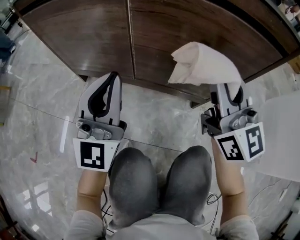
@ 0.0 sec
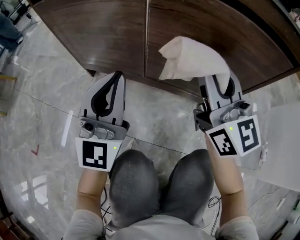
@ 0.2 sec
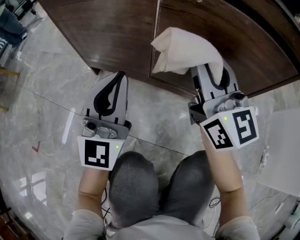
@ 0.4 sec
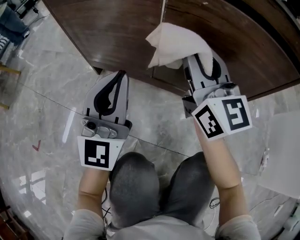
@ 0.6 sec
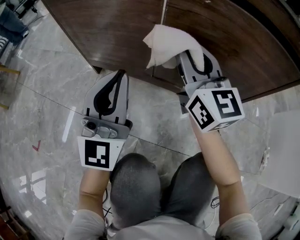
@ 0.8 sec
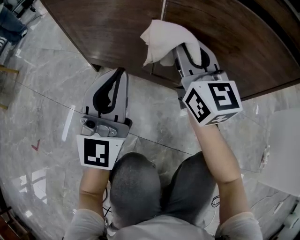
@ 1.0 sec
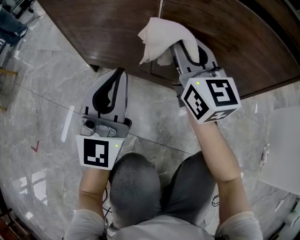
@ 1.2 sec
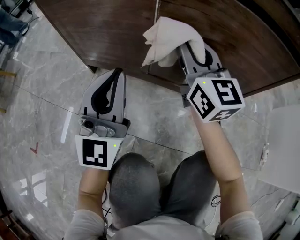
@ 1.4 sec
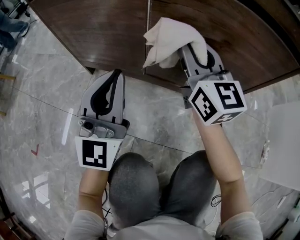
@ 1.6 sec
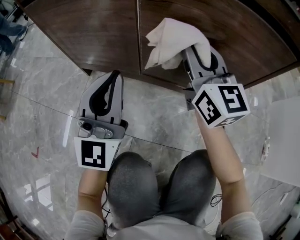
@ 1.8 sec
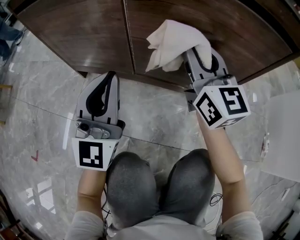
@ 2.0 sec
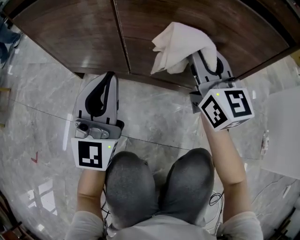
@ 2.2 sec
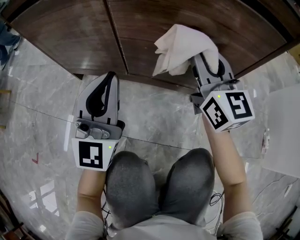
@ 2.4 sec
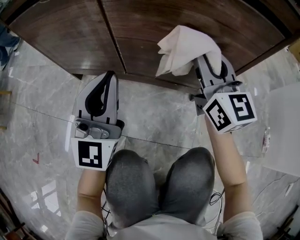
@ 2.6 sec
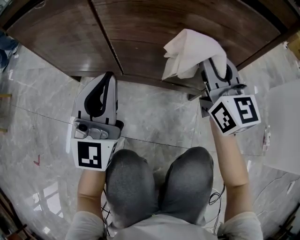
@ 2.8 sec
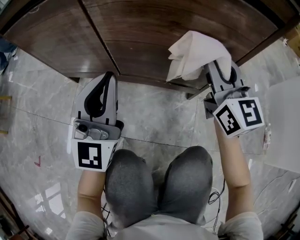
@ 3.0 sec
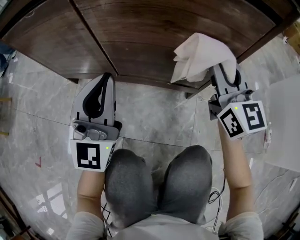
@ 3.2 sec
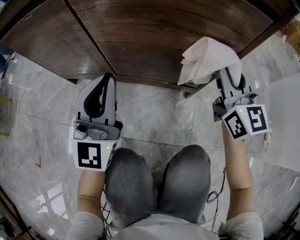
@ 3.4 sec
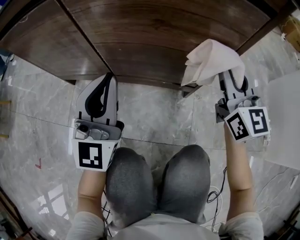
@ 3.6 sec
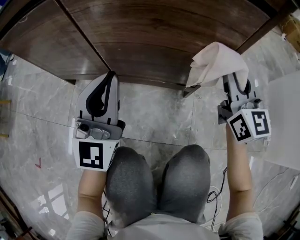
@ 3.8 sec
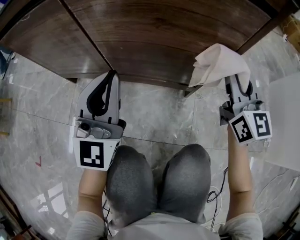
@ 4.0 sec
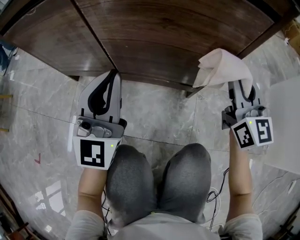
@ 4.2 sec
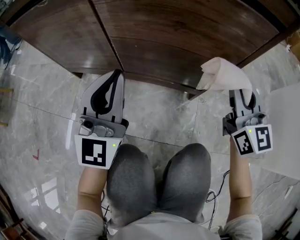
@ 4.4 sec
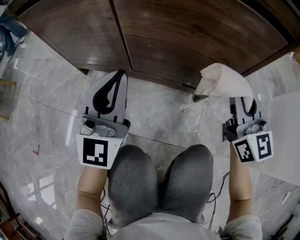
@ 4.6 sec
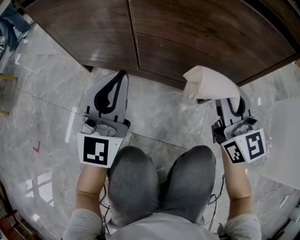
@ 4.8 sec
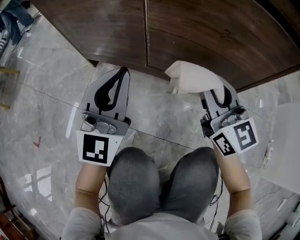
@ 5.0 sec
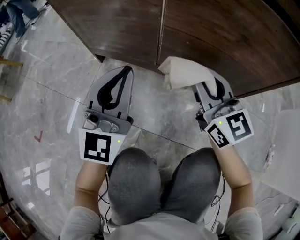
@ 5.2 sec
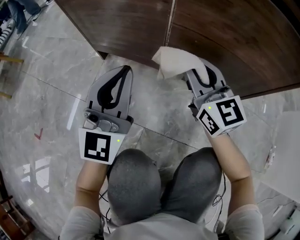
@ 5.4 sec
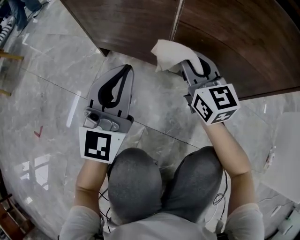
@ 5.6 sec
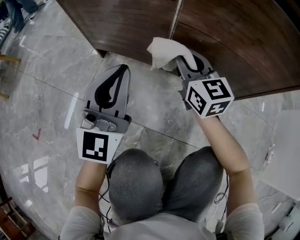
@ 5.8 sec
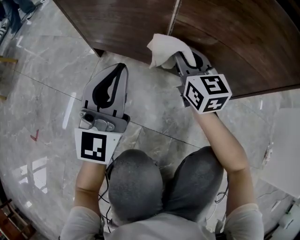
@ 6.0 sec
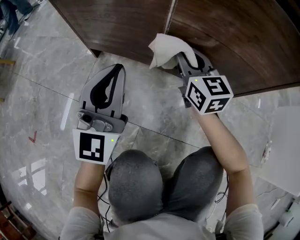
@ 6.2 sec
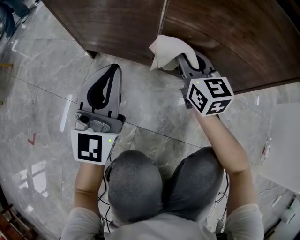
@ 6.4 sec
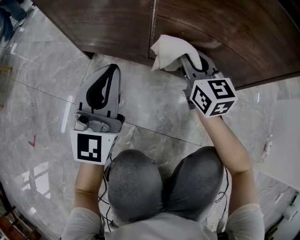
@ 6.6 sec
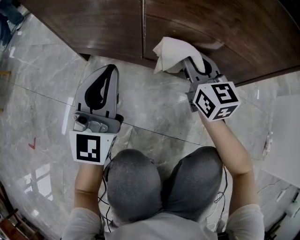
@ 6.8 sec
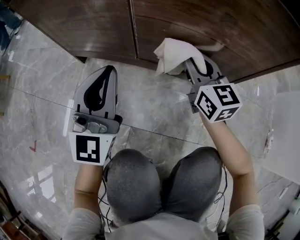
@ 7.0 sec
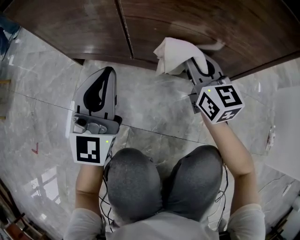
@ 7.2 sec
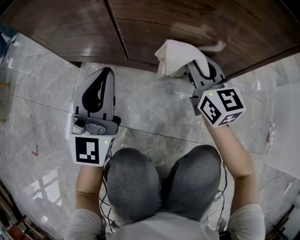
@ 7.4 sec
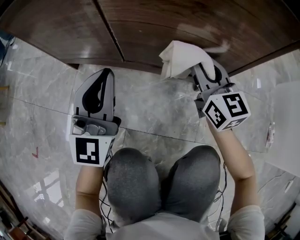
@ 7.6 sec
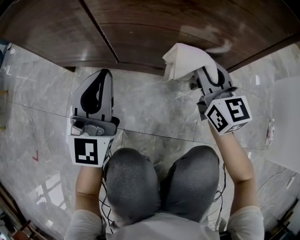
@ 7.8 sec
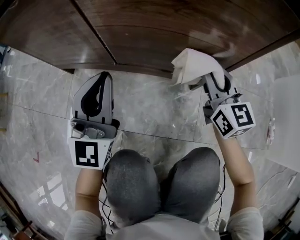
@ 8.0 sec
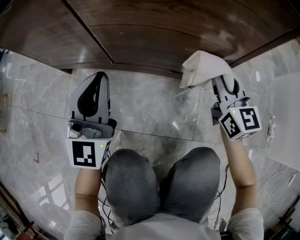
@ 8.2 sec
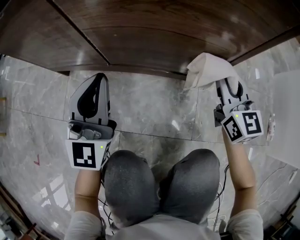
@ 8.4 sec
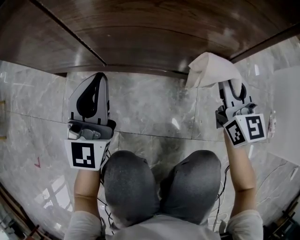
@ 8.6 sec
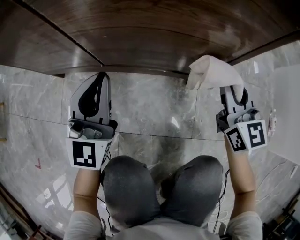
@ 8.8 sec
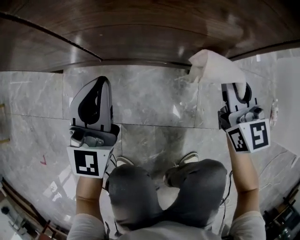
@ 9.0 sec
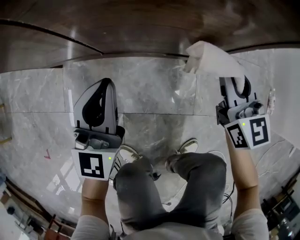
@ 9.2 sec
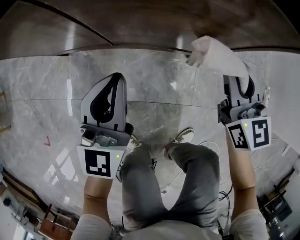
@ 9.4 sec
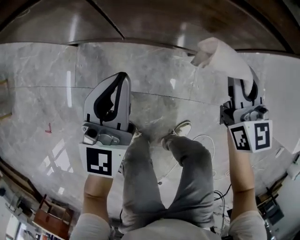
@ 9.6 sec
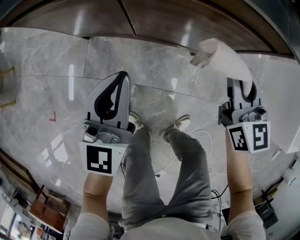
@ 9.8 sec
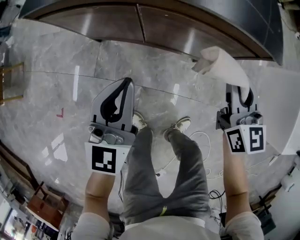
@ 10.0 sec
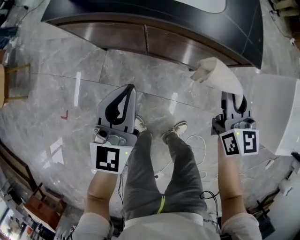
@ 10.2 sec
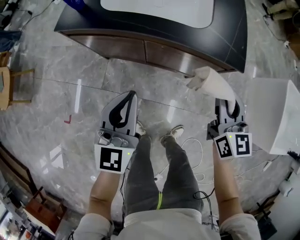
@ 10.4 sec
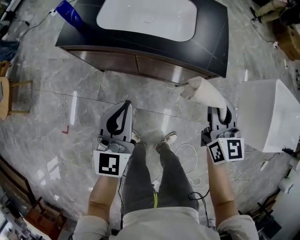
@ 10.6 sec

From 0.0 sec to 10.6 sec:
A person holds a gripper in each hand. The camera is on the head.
From 0.0 sec to 1.6 sec: The right gripper goes approximately 15 cm forward, to the left and downward.
From 1.6 sec to 3.0 sec: The left gripper travels to the right by about 10 cm; the right gripper shifts roughly 20 cm to the right.
From 3.0 sec to 4.6 sec: The right gripper heads backward, covering some 5 cm, and goes to the right and returns, some 10 cm each way.
From 4.6 sec to 6.0 sec: The right gripper moves to the left, forward and downward, approximately 30 cm. Meanwhile the left gripper is displaced to the left and downward by roughly 15 cm.
From 6.0 sec to 7.6 sec: The left gripper goes about 10 cm to the right. Meanwhile the right gripper shifts about 20 cm to the right.
From 7.6 sec to 9.0 sec: The right gripper travels to the right by roughly 15 cm. Meanwhile the left gripper heads to the right, covering approximately 5 cm.
From 9.0 sec to 10.6 sec: The grippers both shift upward by some 60 cm.

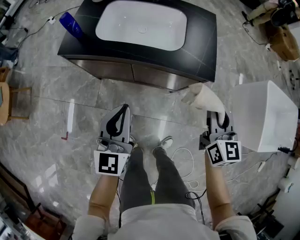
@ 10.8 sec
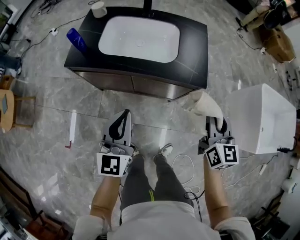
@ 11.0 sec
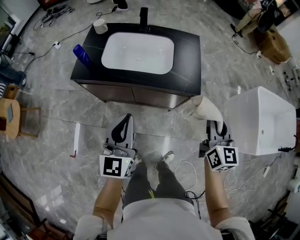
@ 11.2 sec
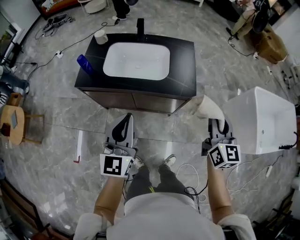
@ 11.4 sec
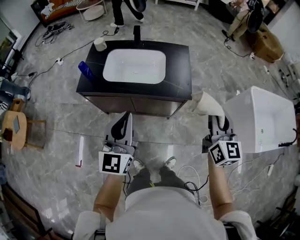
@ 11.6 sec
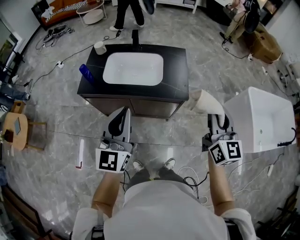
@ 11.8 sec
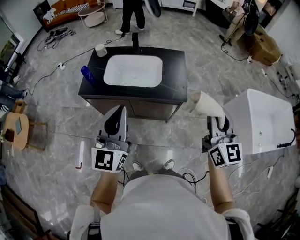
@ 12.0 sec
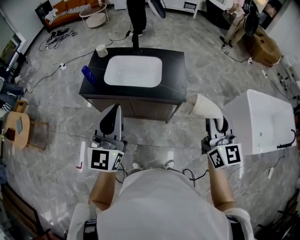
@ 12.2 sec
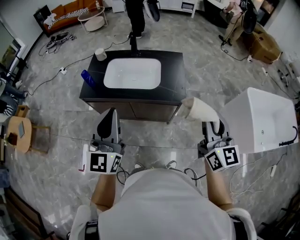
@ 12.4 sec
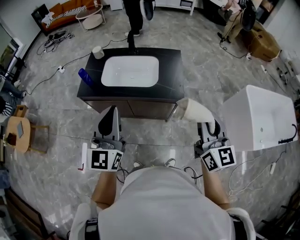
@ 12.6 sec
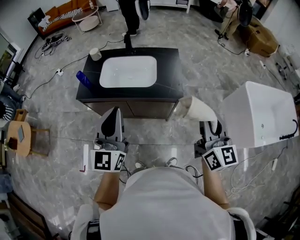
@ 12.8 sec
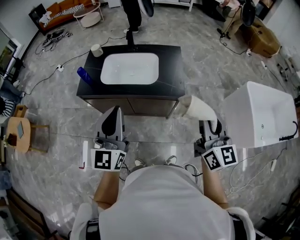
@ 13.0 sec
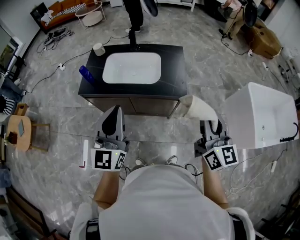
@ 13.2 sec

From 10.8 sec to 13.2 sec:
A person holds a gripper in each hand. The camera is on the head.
From 10.8 sec to 12.0 sec: Both grippers travel together upward, roughly 30 cm.
From 12.0 sec to 13.2 sec: There are only small adjustments of the grippers.

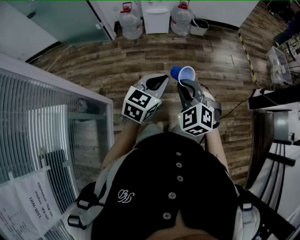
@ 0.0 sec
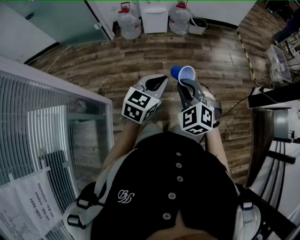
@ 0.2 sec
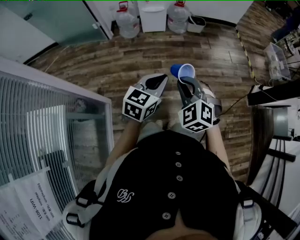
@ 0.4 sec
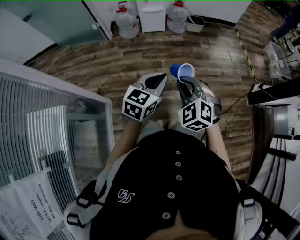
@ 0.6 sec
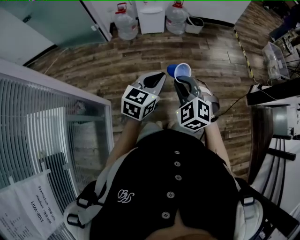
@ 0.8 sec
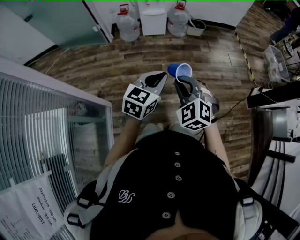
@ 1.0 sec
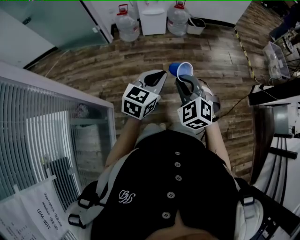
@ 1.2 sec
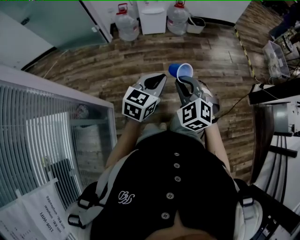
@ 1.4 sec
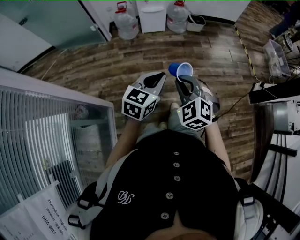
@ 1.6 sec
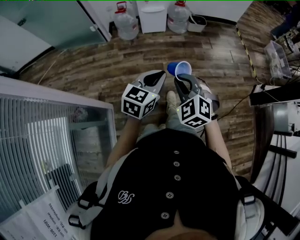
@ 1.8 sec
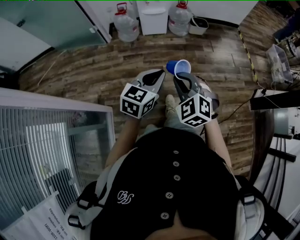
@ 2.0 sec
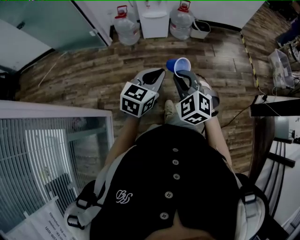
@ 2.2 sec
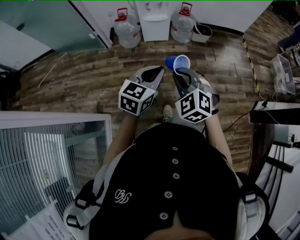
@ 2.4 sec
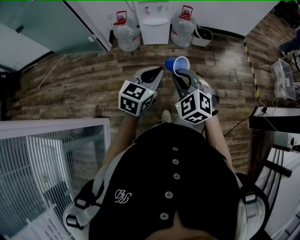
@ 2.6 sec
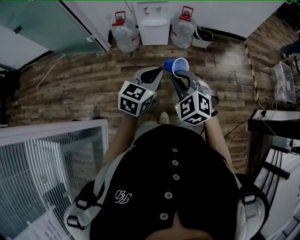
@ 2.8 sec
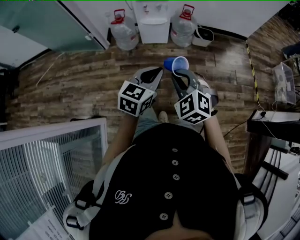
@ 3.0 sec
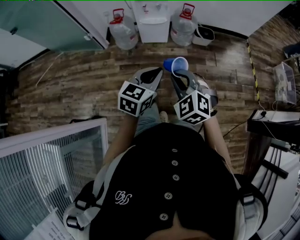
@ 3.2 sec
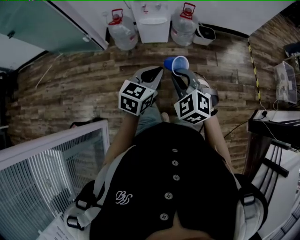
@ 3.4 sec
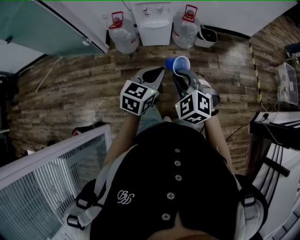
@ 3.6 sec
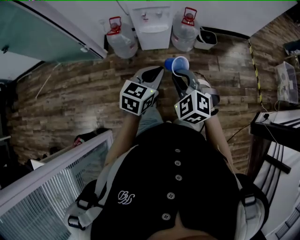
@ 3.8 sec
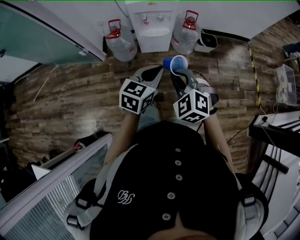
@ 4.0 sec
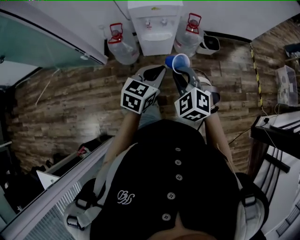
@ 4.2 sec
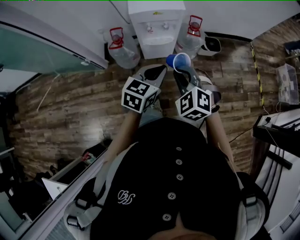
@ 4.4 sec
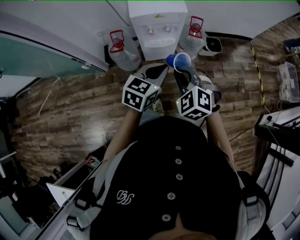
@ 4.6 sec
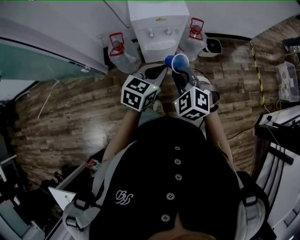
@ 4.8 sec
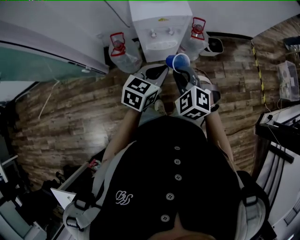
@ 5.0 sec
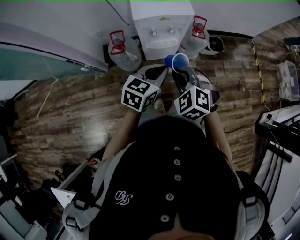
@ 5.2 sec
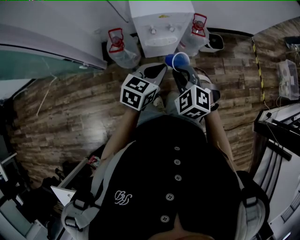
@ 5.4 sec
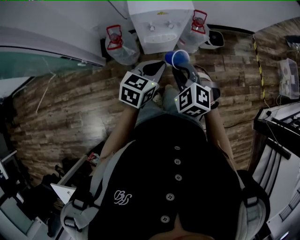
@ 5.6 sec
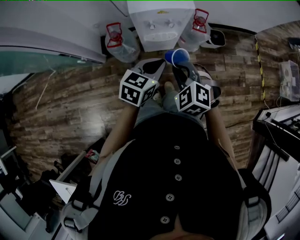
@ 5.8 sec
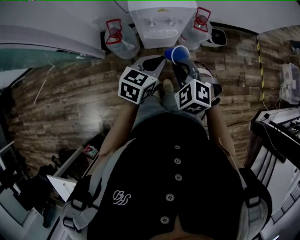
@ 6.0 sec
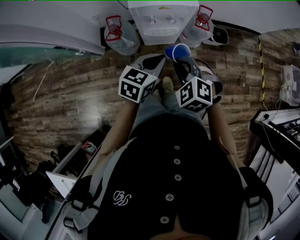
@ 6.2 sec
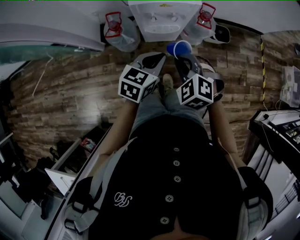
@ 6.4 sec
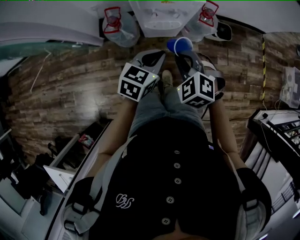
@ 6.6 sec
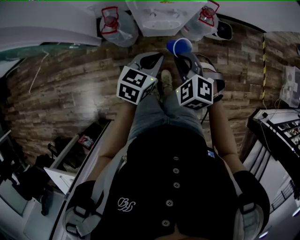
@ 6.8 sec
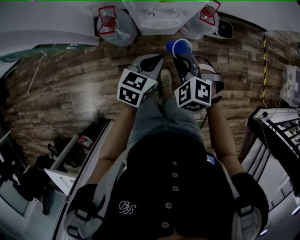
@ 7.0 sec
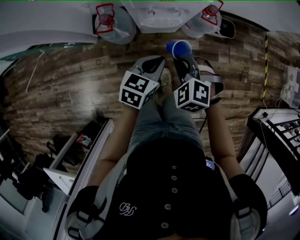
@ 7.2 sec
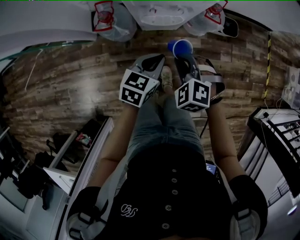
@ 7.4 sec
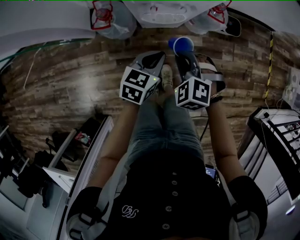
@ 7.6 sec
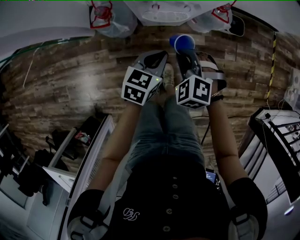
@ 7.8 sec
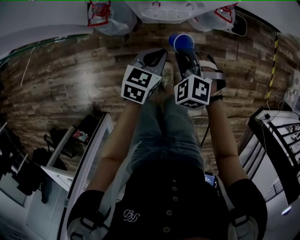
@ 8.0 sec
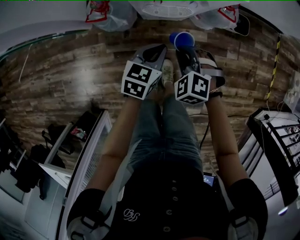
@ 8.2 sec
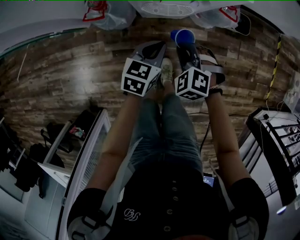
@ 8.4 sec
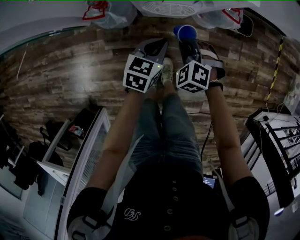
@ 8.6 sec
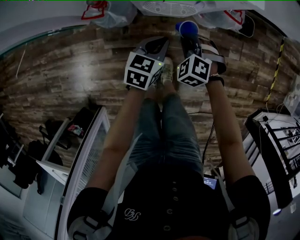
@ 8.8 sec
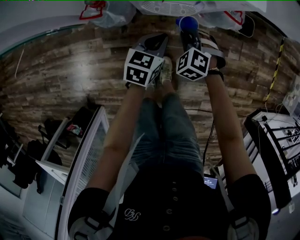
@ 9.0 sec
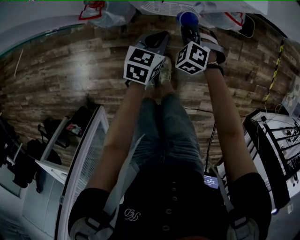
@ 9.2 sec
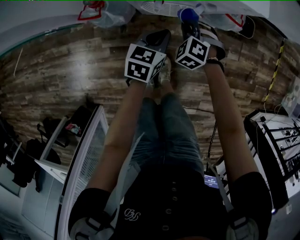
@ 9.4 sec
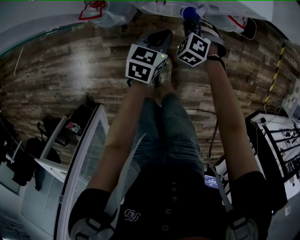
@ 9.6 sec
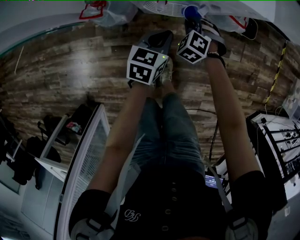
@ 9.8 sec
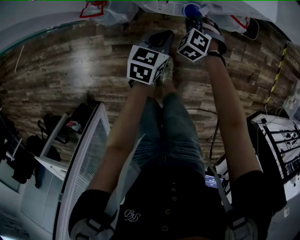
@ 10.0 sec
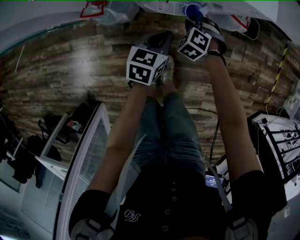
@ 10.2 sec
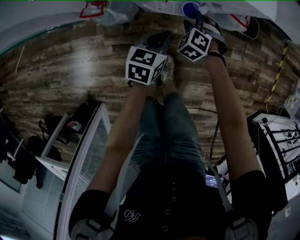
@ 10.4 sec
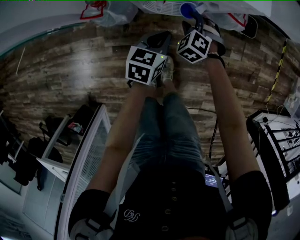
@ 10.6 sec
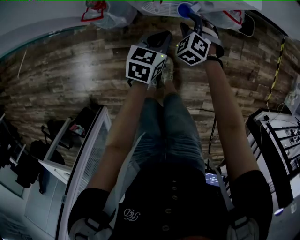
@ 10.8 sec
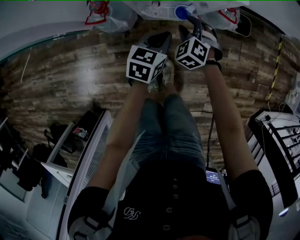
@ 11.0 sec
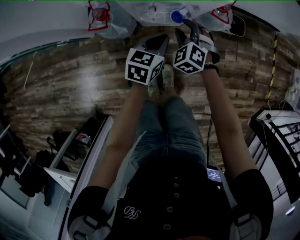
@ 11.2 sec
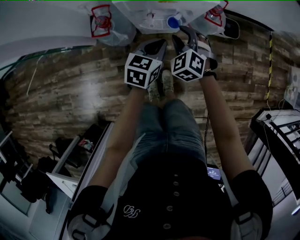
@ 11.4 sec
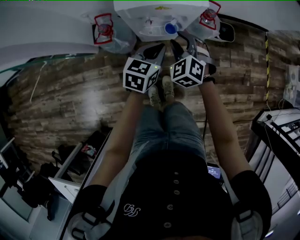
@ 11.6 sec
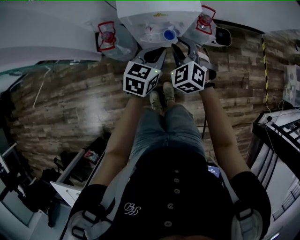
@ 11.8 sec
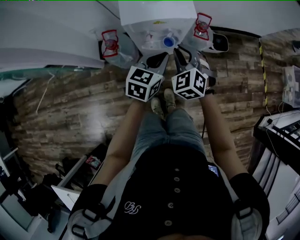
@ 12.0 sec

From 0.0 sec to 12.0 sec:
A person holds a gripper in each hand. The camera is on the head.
From 0.0 sec to 1.6 sec: The right gripper changes place by approximately 5 cm. The left gripper shifts by approximately 5 cm.
From 1.6 sec to 3.0 sec: The grippers both shift forward by roughly 30 cm.
From 3.0 sec to 4.4 sec: Both grippers move forward, some 30 cm.
From 4.4 sec to 6.0 sec: Both grippers move forward, approximately 10 cm.
From 6.0 sec to 7.6 sec: The right gripper moves downward and forward, approximately 15 cm. Meanwhile the left gripper heads downward, covering roughly 15 cm.
From 7.6 sec to 9.0 sec: Both grippers move downward and forward, approximately 15 cm.
From 9.0 sec to 10.4 sec: The right gripper goes about 10 cm forward and downward, and opens its fingers.
From 10.4 sec to 12.0 sec: The two grippers go roughly 30 cm upward. The right gripper turns by approximately 30 degrees; the left gripper swivels some 20 degrees.
